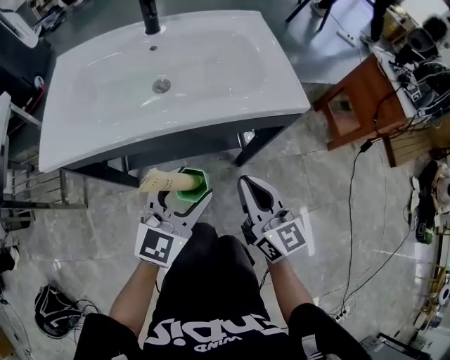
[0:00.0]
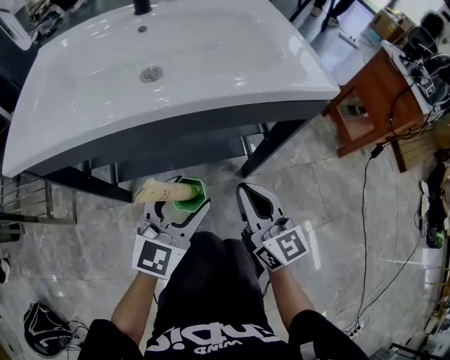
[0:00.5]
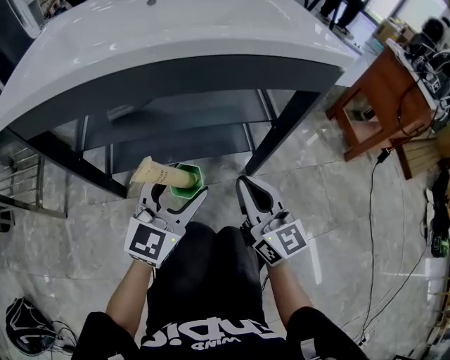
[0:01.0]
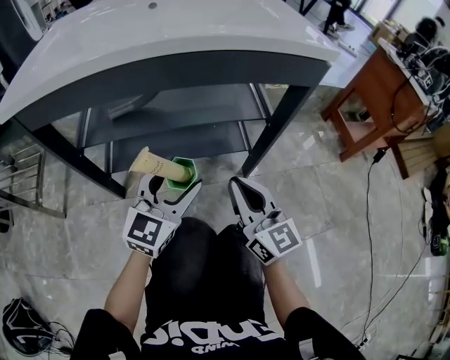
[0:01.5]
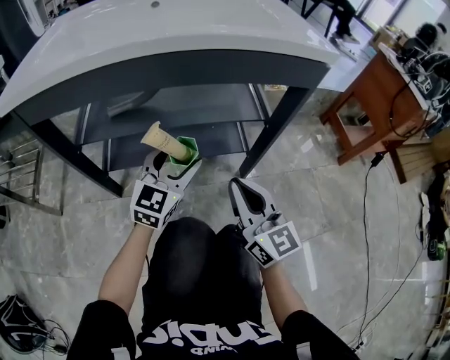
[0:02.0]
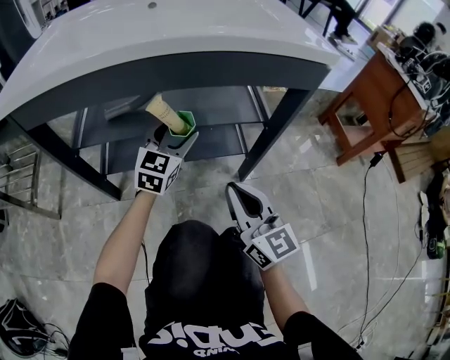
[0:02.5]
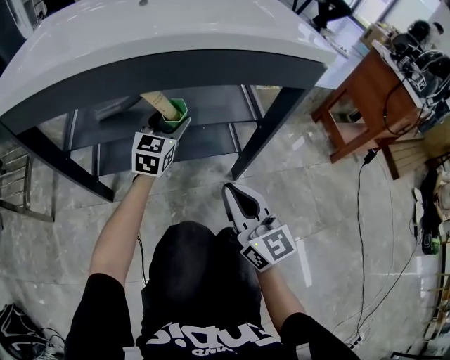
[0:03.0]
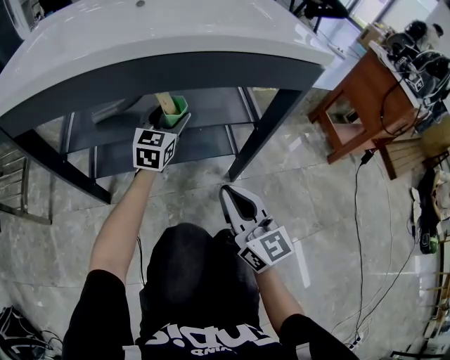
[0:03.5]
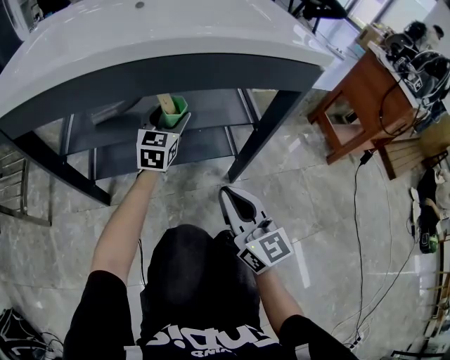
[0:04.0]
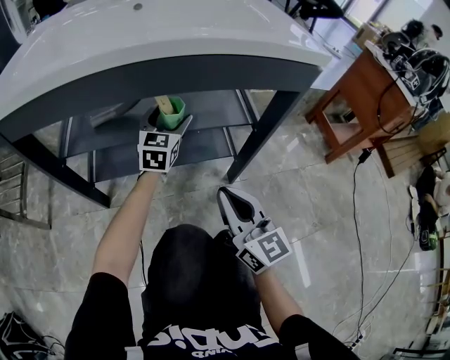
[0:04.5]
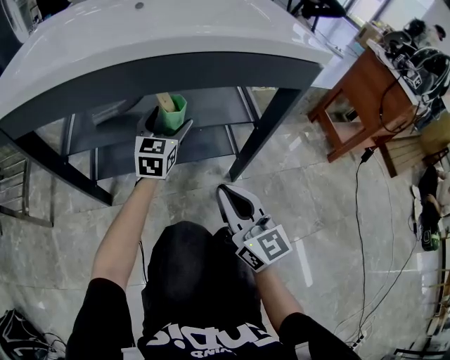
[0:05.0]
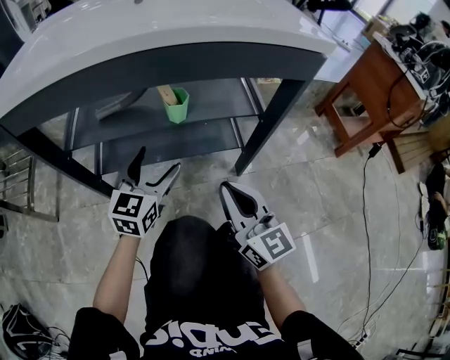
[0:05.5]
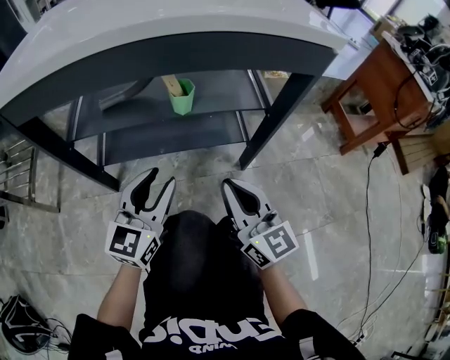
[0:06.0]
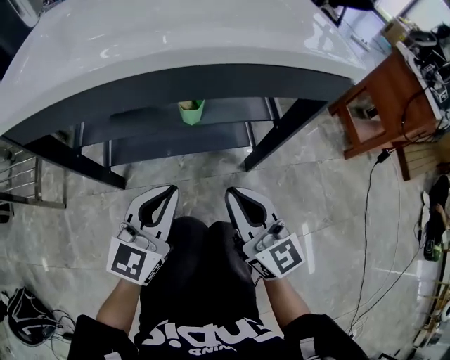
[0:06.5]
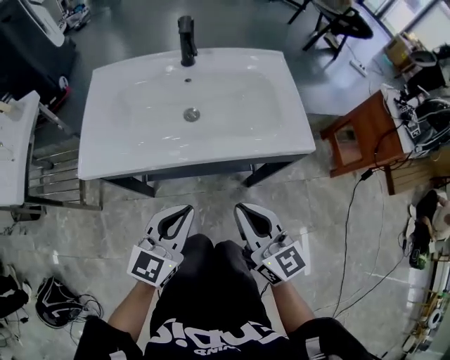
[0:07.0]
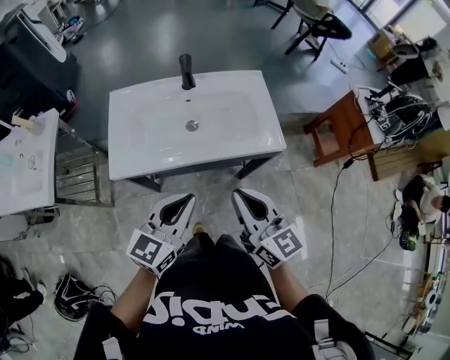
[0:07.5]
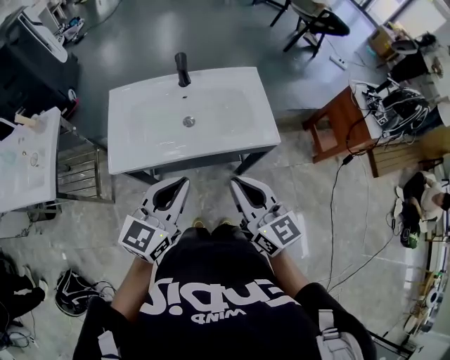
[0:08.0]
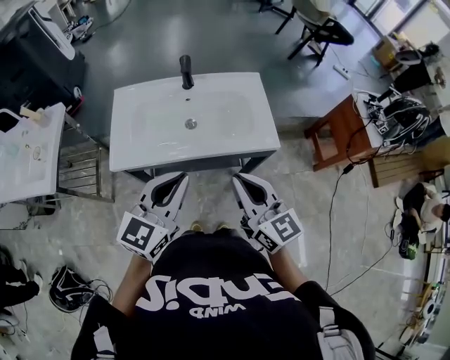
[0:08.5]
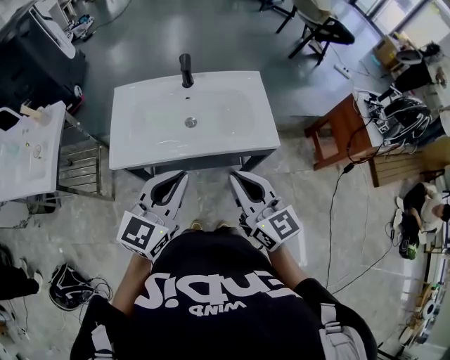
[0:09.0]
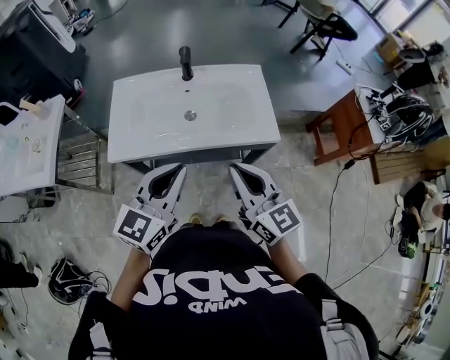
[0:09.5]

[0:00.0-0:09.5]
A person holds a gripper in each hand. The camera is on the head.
0:00.0 to 0:02.0: The two grippers go roughly 20 cm downward.
0:02.0 to 0:04.0: The left gripper heads forward, covering roughly 15 cm.
0:04.0 to 0:05.5: The left gripper shifts some 15 cm backward.
0:05.5 to 0:07.5: The grippers both shift upward by roughly 50 cm. The left gripper closes up.
0:07.5 to 0:09.5: The left gripper moves upward, roughly 5 cm.

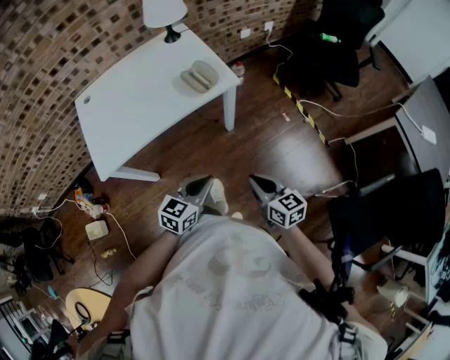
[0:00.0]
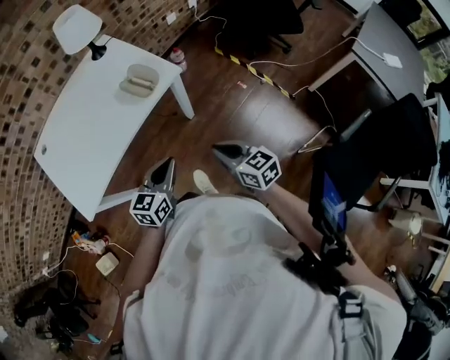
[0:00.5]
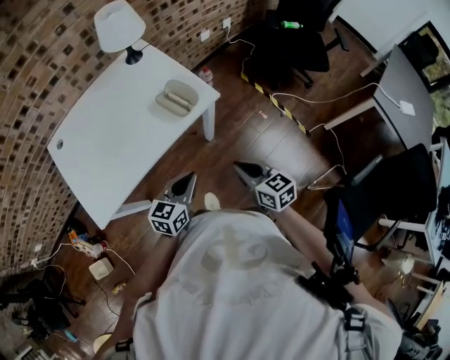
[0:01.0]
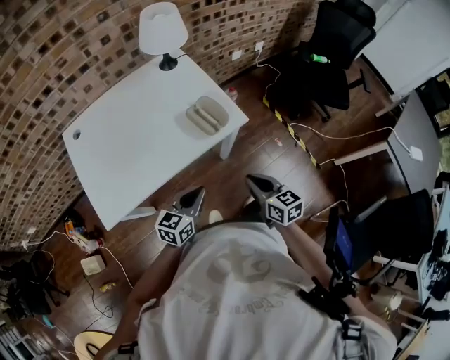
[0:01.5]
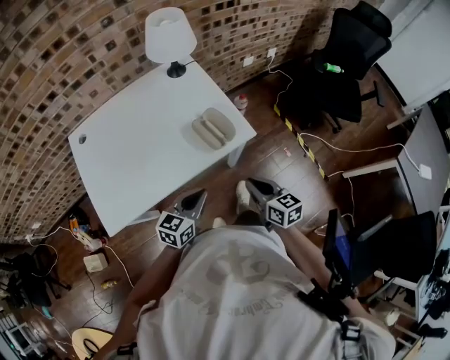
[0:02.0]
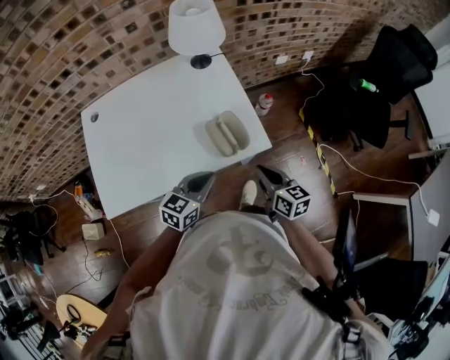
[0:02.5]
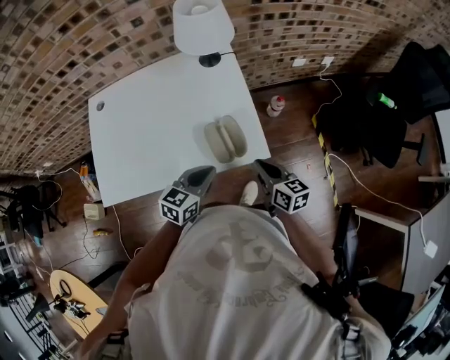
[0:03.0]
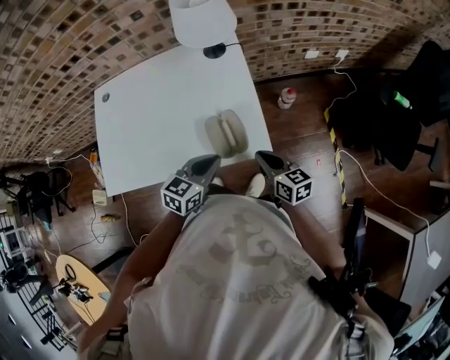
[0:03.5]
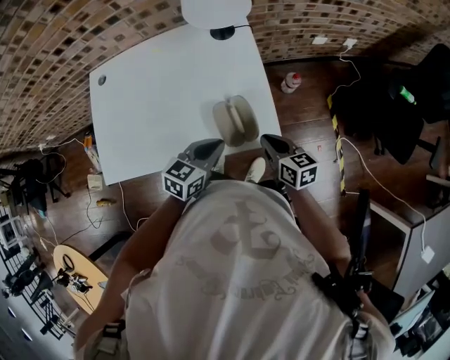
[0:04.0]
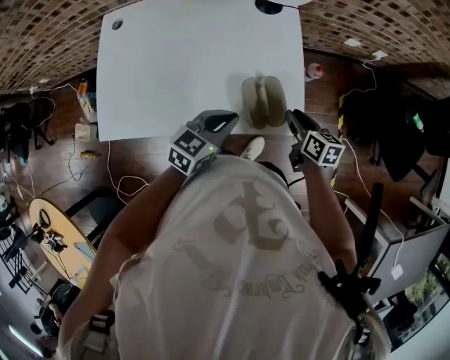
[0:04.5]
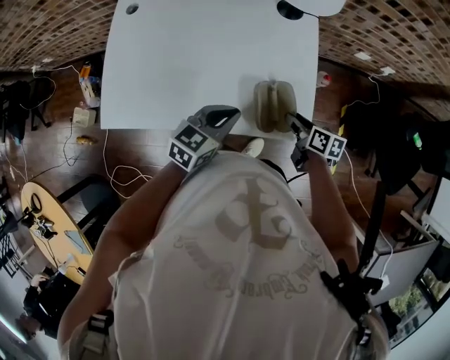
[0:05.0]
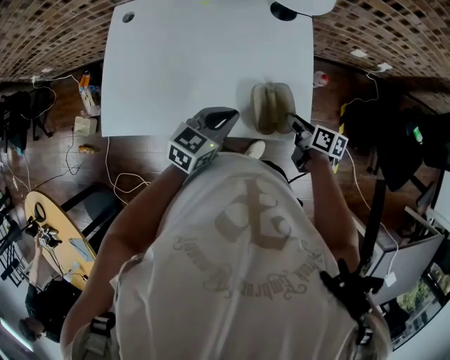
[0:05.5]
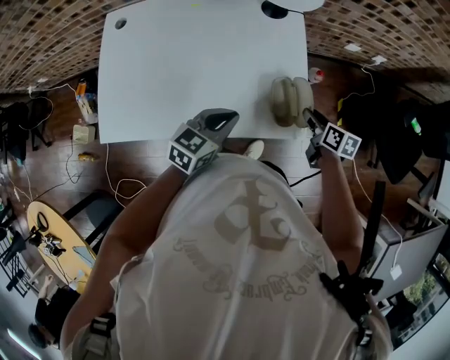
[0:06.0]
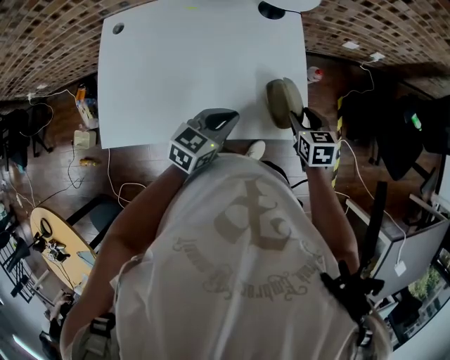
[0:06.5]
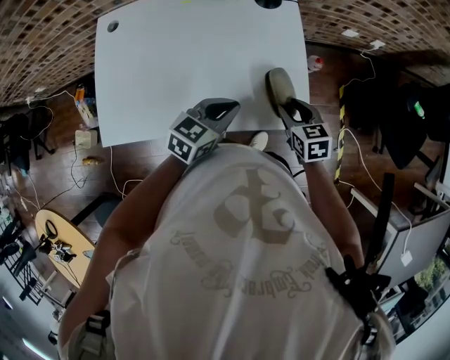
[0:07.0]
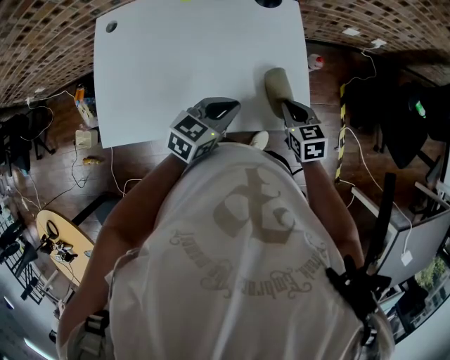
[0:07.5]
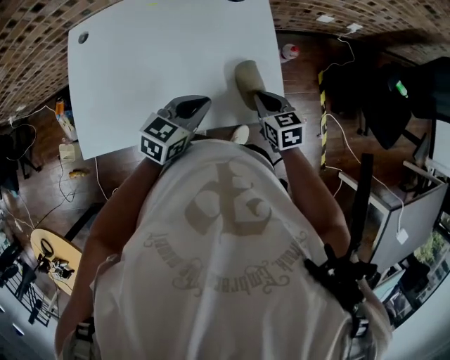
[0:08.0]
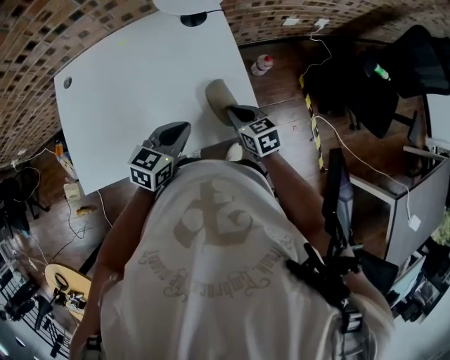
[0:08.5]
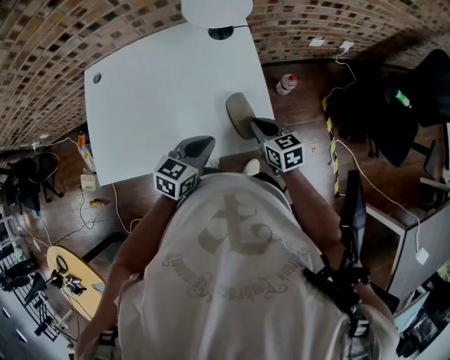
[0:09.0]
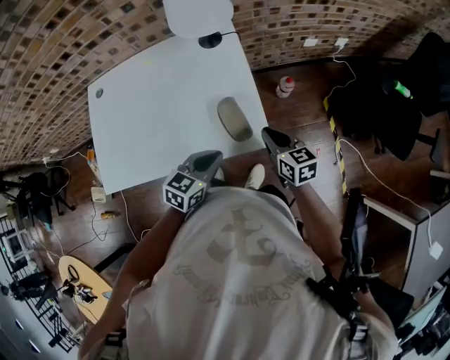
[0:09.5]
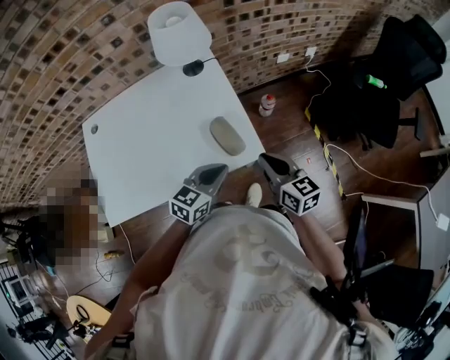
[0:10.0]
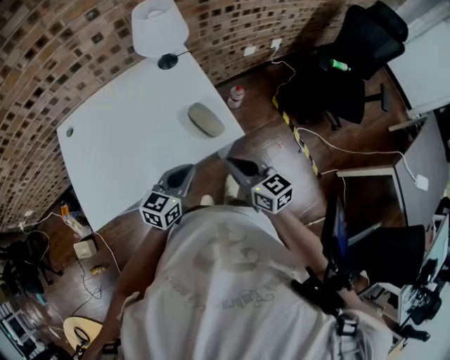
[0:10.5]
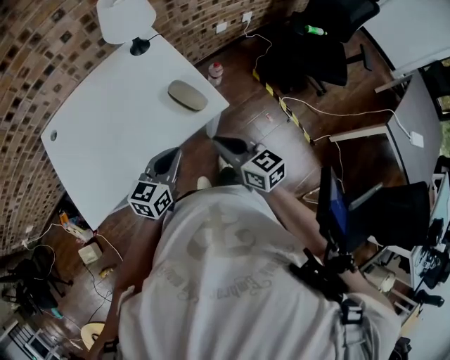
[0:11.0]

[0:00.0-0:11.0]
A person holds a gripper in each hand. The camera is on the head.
0:00.0 to 0:02.0: The left gripper is displaced forward and to the left by roughly 25 cm. Meanwhile the right gripper moves forward, approximately 25 cm.
0:02.0 to 0:03.5: The right gripper is displaced forward by about 20 cm, and turns by approximately 20 degrees, while the left gripper travels forward and to the right by approximately 20 cm.
0:03.5 to 0:05.5: The right gripper goes approximately 10 cm forward and downward, changes its angle by approximately 30 degrees, and opens up. Meanwhile the left gripper moves to the left, about 10 cm.
0:05.5 to 0:07.5: The right gripper reaches roughly 5 cm to the right, then returns, twists about 40 degrees counterclockwise, seen from behind, and closes up.
0:07.5 to 0:09.0: The grippers make only small movements.
0:09.0 to 0:11.0: The right gripper moves backward and upward, roughly 25 cm, and changes its angle by some 20 degrees, while the left gripper moves backward, some 10 cm.

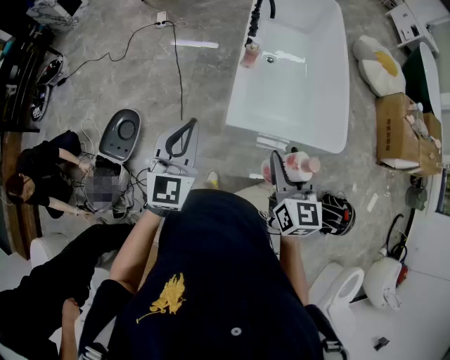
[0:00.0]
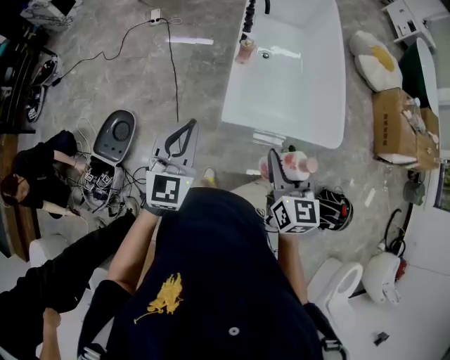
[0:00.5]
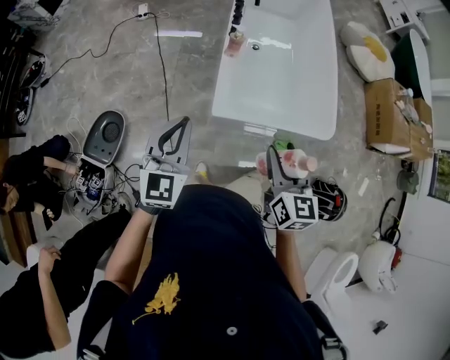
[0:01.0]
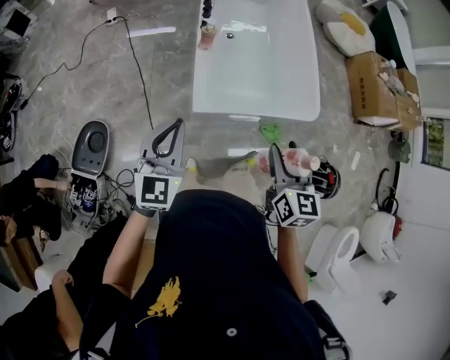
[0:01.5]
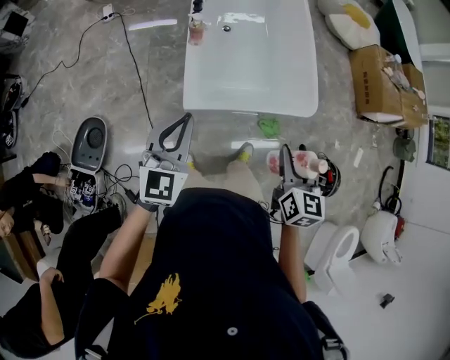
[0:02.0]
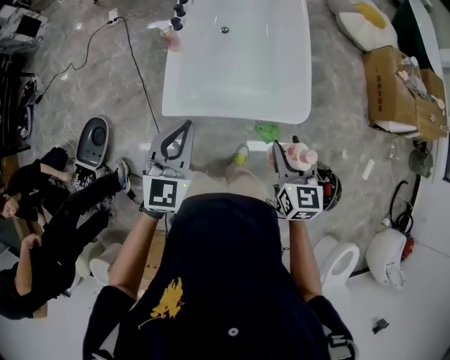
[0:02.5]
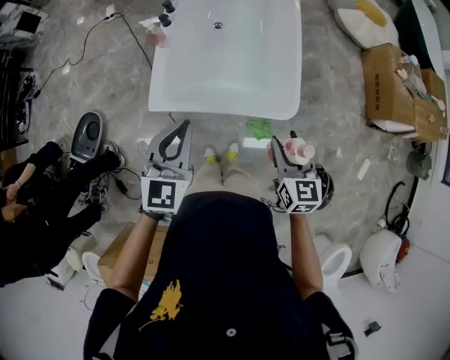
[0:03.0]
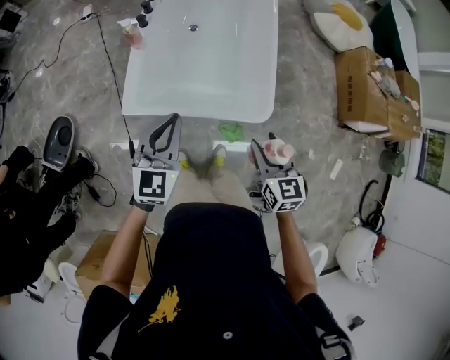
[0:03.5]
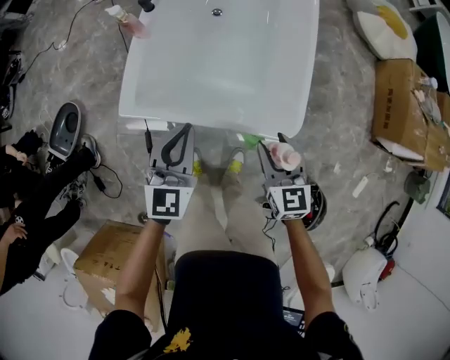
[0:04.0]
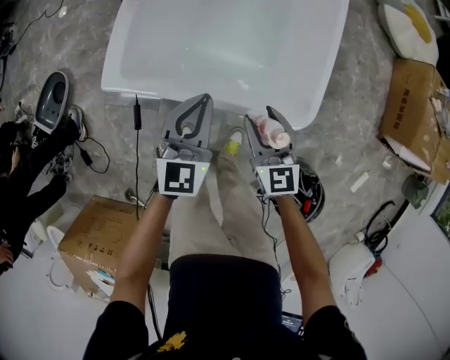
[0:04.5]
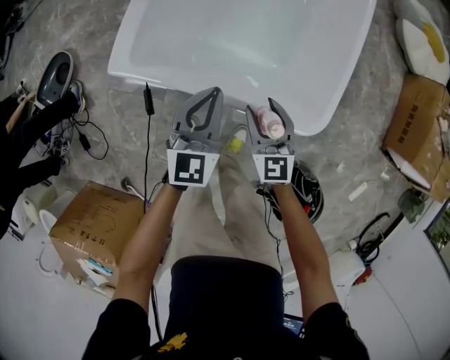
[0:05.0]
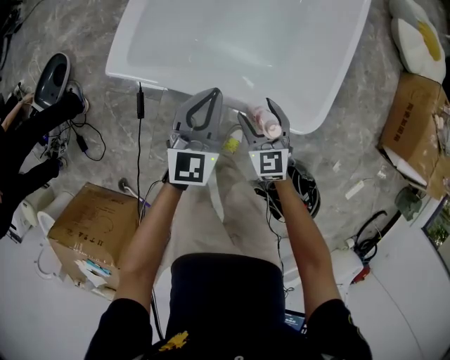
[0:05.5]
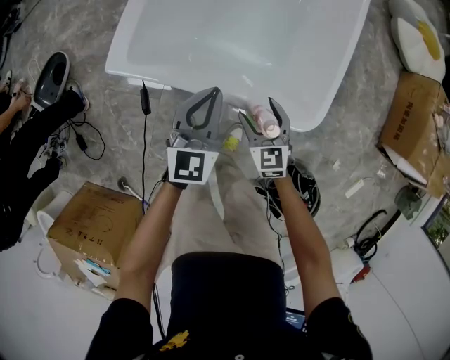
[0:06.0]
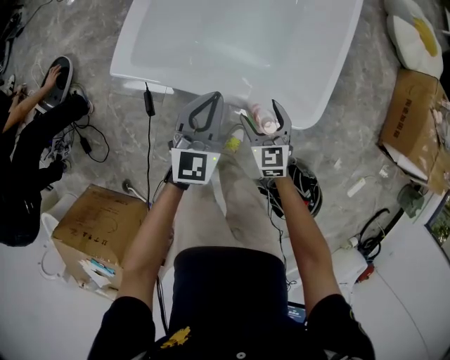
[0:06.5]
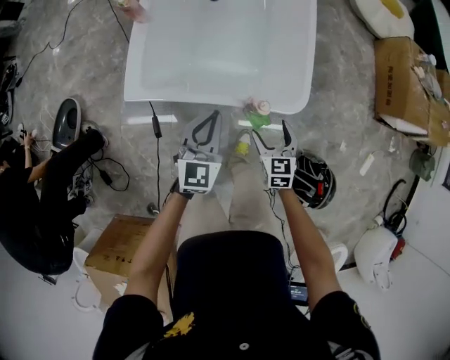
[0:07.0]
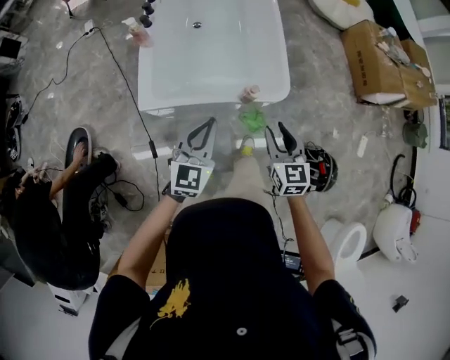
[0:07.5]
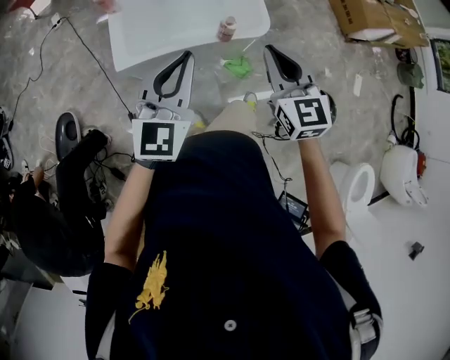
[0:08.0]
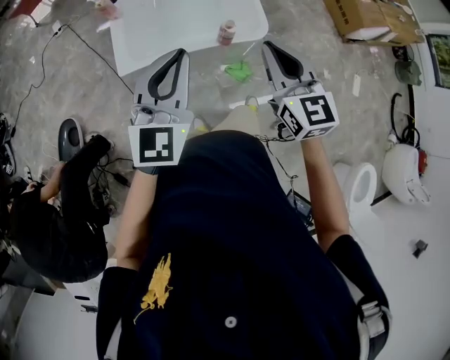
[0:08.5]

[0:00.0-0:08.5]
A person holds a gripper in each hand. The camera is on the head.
0:00.0 to 0:02.0: The right gripper is displaced to the right by roughly 20 cm, and changes its angle by about 20 degrees. Meanwhile the left gripper goes about 15 cm to the right and forward.
0:02.0 to 0:04.0: Both grippers travel together to the right, downward and forward, roughly 40 cm. The right gripper changes its angle by approximately 30 degrees.
0:04.0 to 0:06.5: Both grippers move downward, roughly 20 cm. The right gripper opens up.
0:06.5 to 0:08.5: Both grippers travel together upward, some 40 cm. The right gripper changes its angle by approximately 30 degrees, and closes its fingers. Meanwhile the left gripper swivels approximately 30 degrees.
